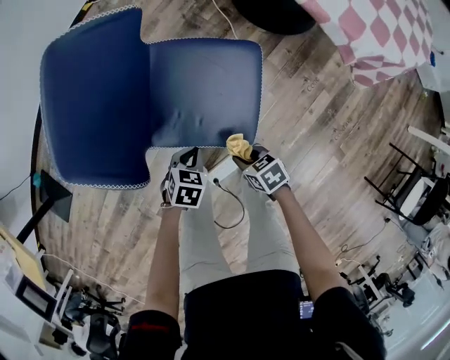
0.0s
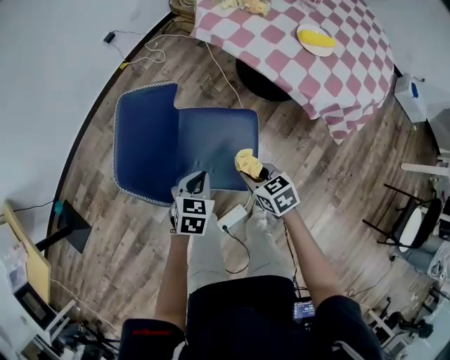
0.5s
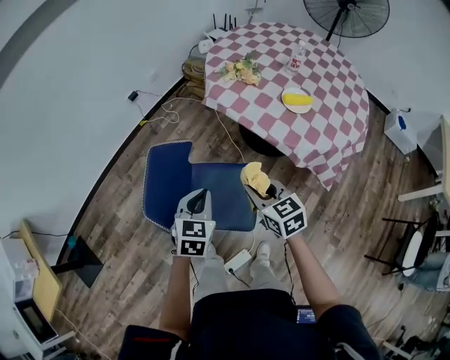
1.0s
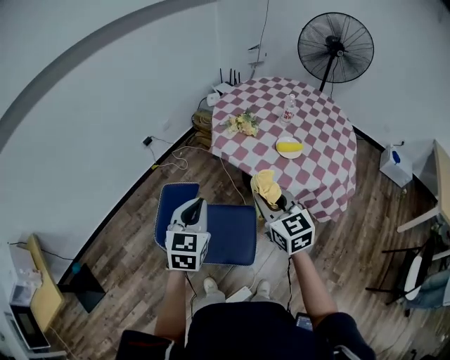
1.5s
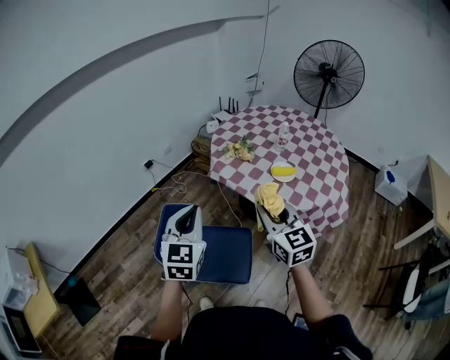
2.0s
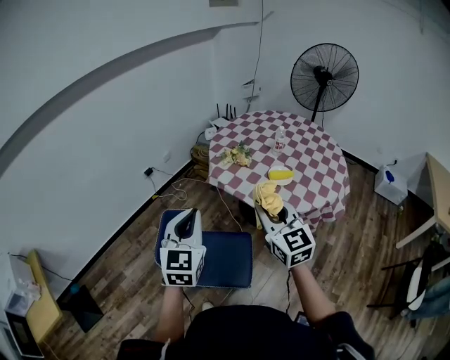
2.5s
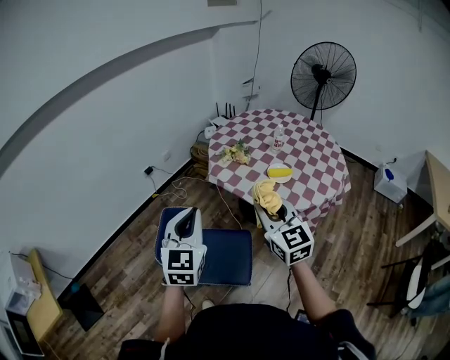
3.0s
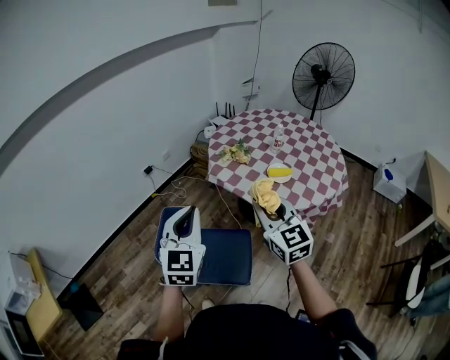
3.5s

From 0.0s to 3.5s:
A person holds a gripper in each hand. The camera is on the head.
From 0.0s to 2.0s: Both grippers travel together upward, approximately 70 cm. The left gripper tilts its fingers about 60 degrees upward, while the right gripper points its fingers some 50 degrees further upward.
From 2.0s to 3.5s: There are only small adjustments of the grippers.

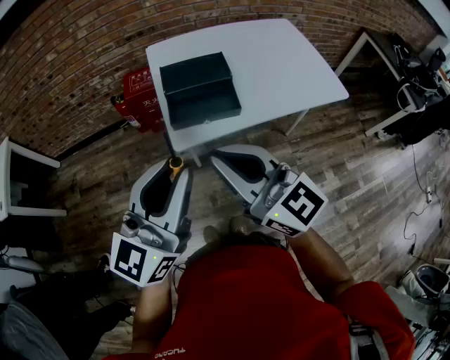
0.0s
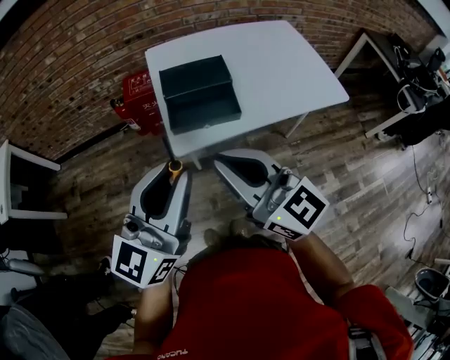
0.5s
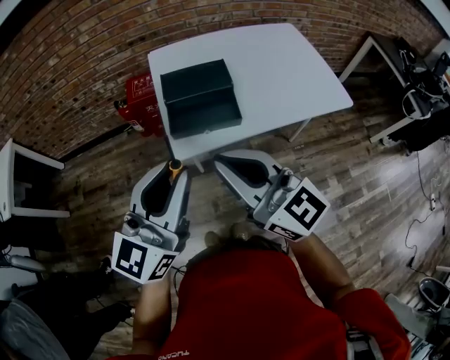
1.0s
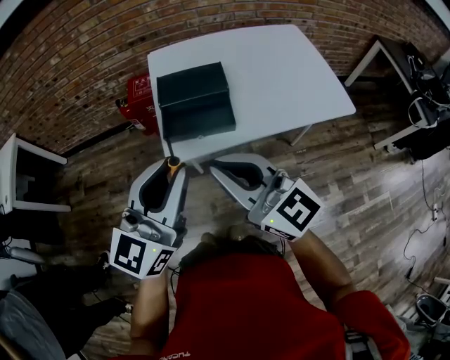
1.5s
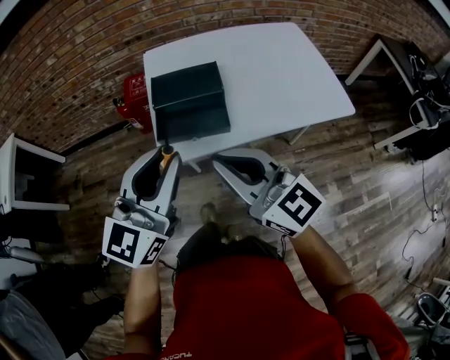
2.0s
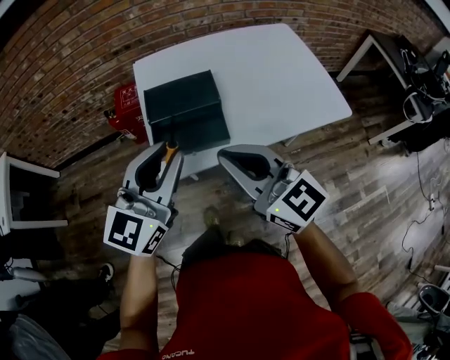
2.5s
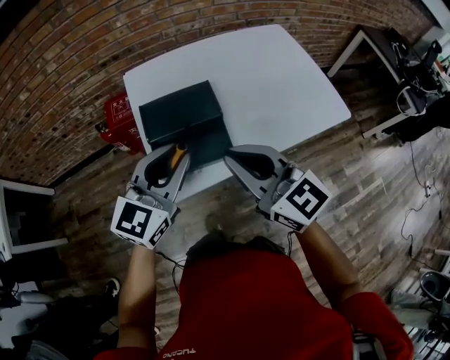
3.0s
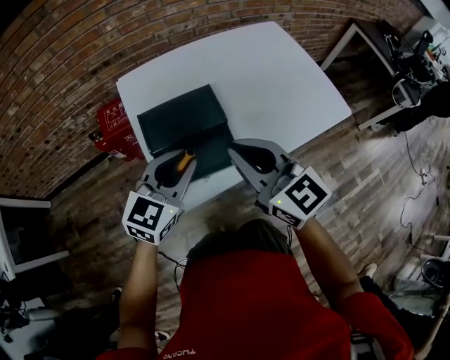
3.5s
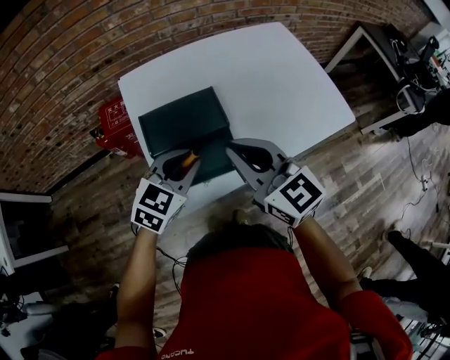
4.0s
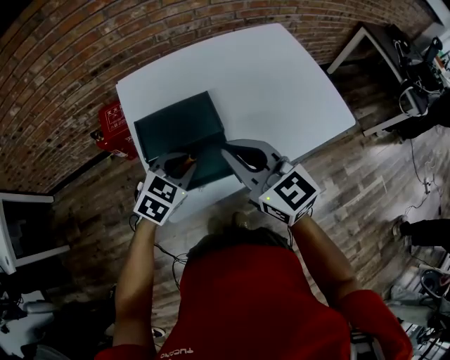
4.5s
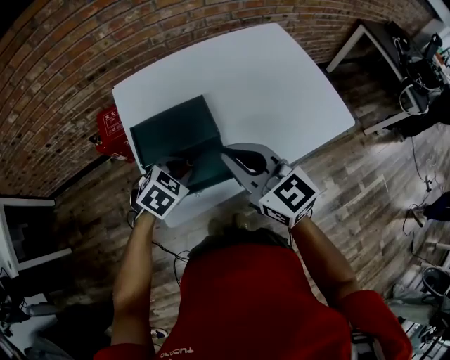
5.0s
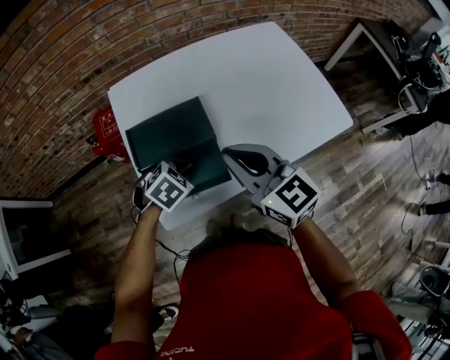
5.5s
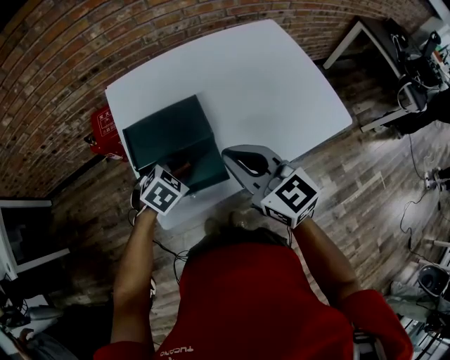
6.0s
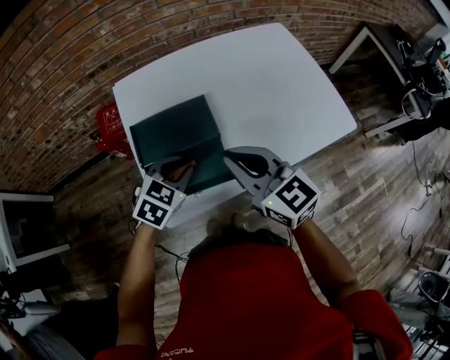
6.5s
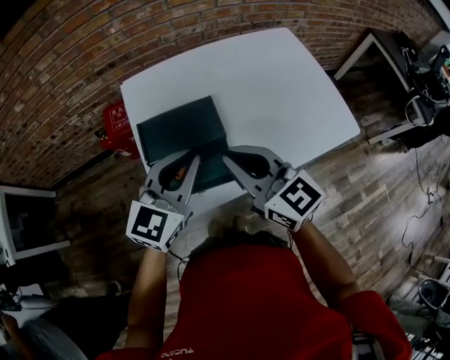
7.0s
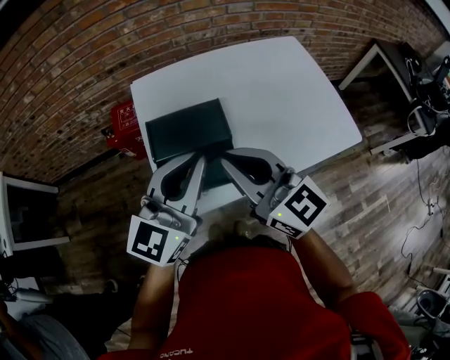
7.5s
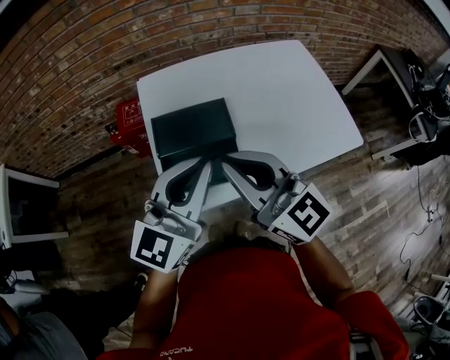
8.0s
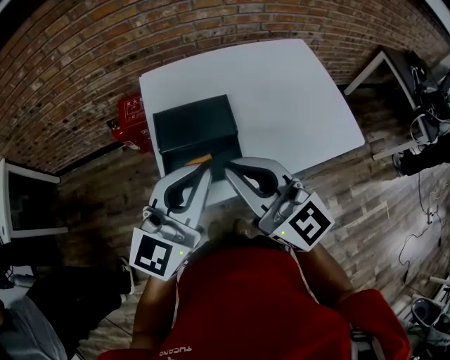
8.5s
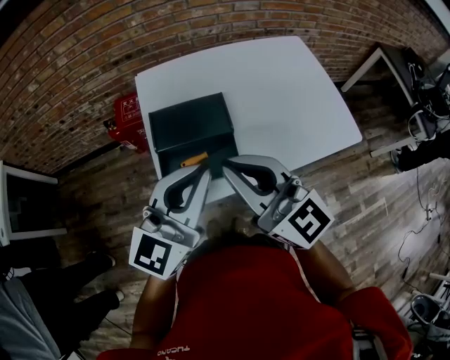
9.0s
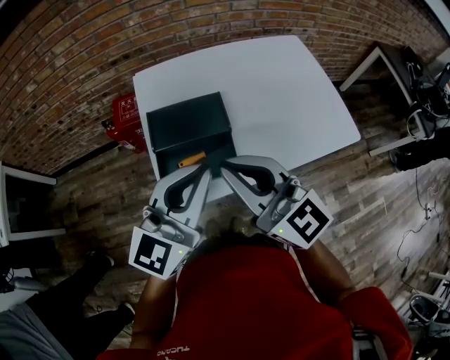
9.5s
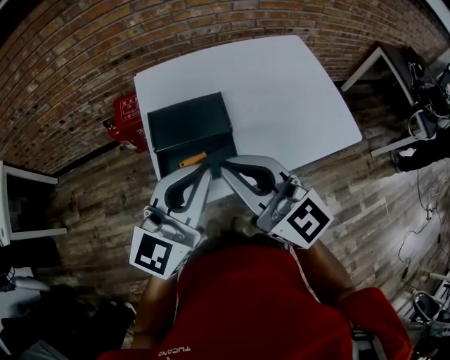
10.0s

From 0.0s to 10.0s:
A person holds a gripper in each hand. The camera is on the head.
From 0.0s to 2.0s: The left gripper goes approximately 10 cm forward and to the right, while the right gripper travels to the right and forward by roughly 10 cm.
From 2.0s to 4.0s: The right gripper heads forward, covering approximately 20 cm, and changes its angle by roughly 20 degrees; the left gripper moves forward and downward, approximately 25 cm, and tips its fingers downward by roughly 30 degrees.
From 4.0s to 6.0s: The right gripper changes place by roughly 5 cm; the left gripper shifts some 10 cm downward, and tips its fingers downward by roughly 30 degrees.
From 6.0s to 8.0s: The right gripper shifts approximately 10 cm upward and to the left. The left gripper travels upward by approximately 30 cm, and angles its fingers upward, by approximately 70 degrees.
From 8.0s to 10.0s: The grippers stay close to where they were, moving slightly.

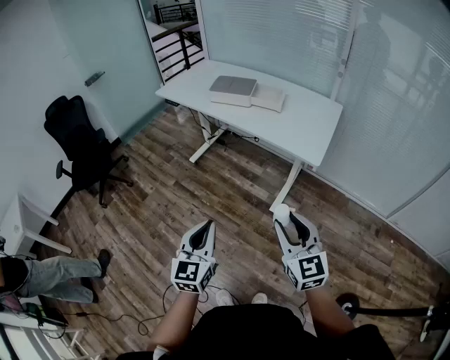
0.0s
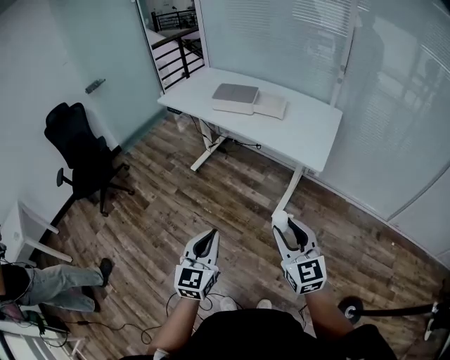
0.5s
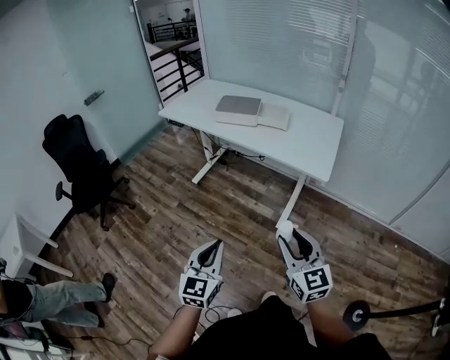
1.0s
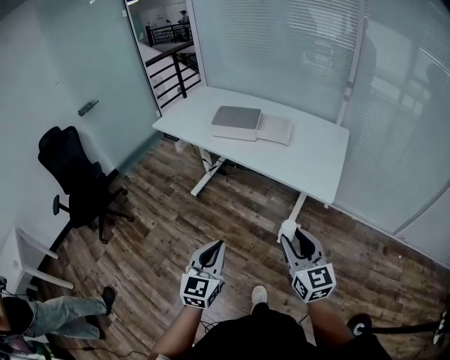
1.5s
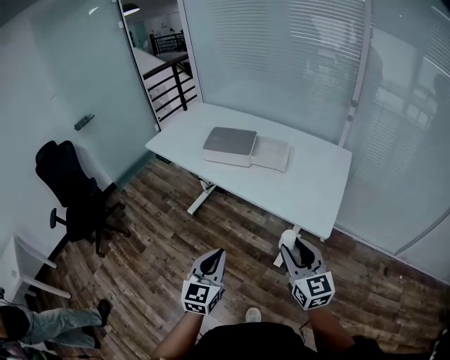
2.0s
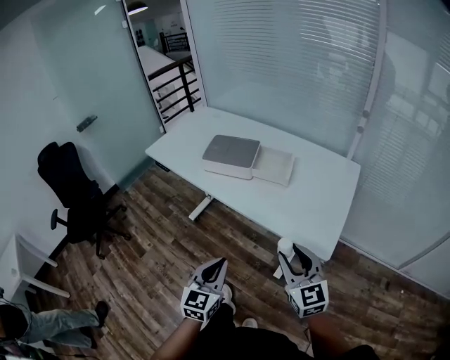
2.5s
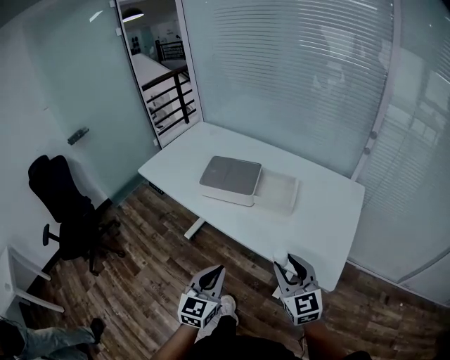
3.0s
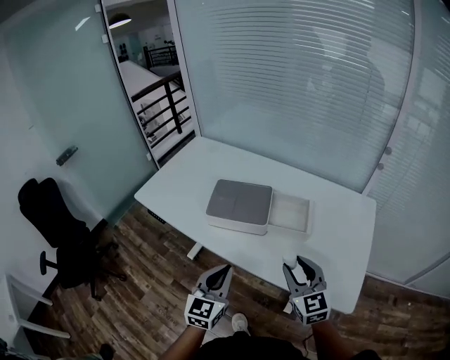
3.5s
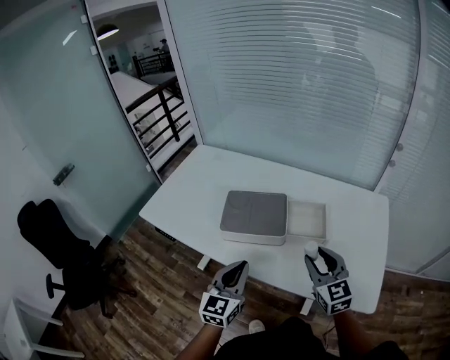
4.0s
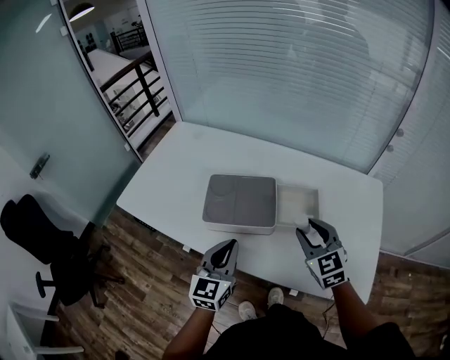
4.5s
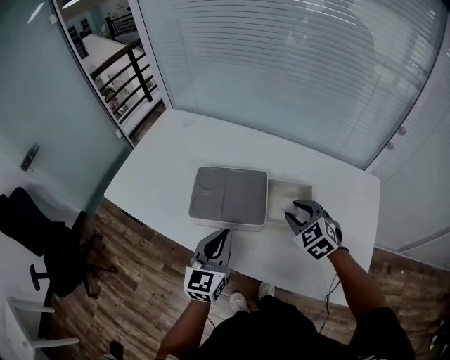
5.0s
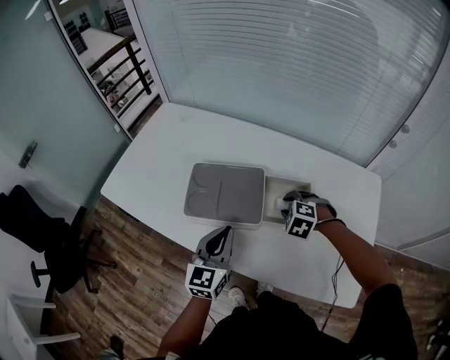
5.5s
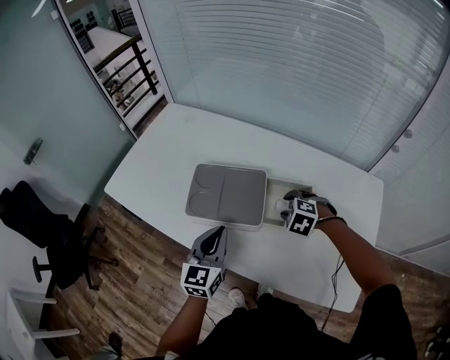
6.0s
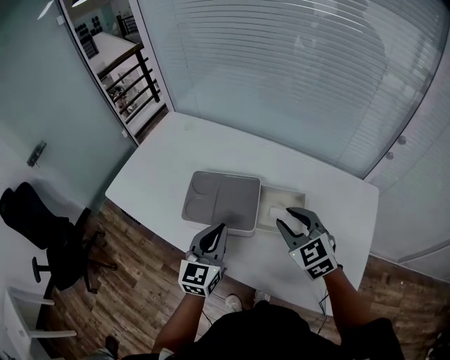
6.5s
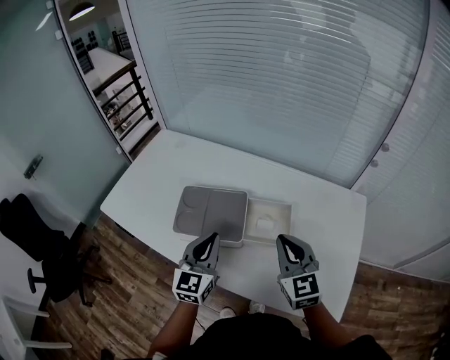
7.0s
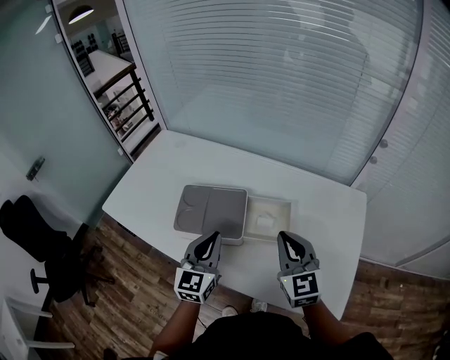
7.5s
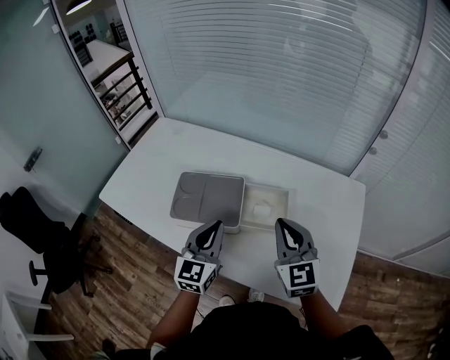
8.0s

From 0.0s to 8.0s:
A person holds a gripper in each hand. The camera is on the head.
From 0.0s to 2.0s: The grippers both shift forward by about 25 cm.
From 2.0s to 4.0s: Both grippers move forward, approximately 35 cm.
From 4.0s to 6.0s: The right gripper goes approximately 25 cm forward and downward, and points its fingers about 50 degrees further downward, while the left gripper travels forward by some 10 cm.
From 6.0s to 8.0s: The left gripper shifts some 10 cm to the right and upward, while the right gripper is displaced upward and backward by approximately 25 cm, tilts its fingers roughly 60 degrees upward, and closes its fingers.

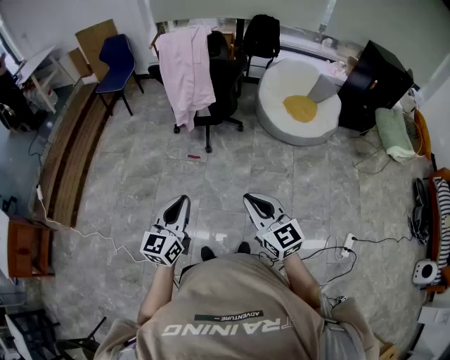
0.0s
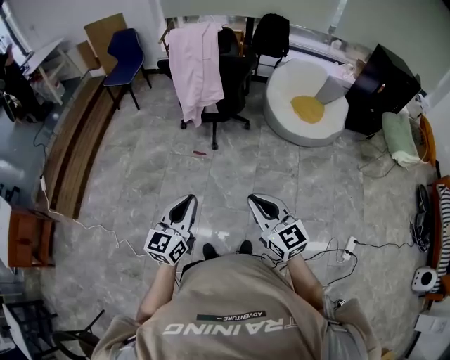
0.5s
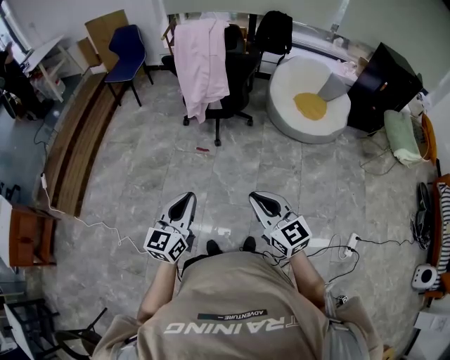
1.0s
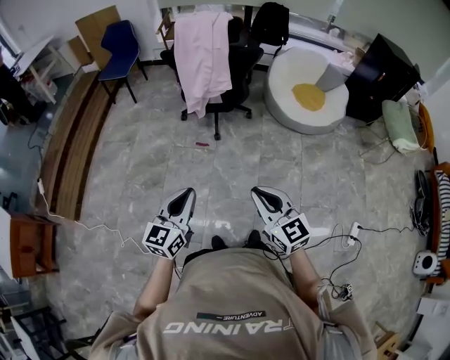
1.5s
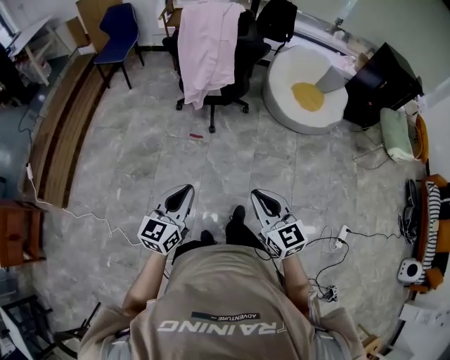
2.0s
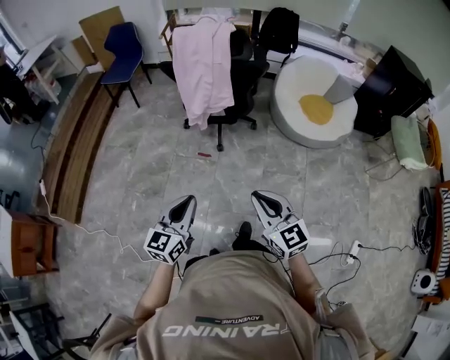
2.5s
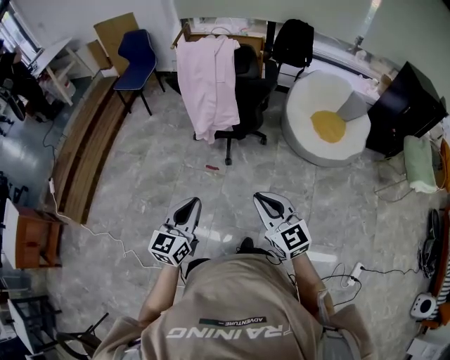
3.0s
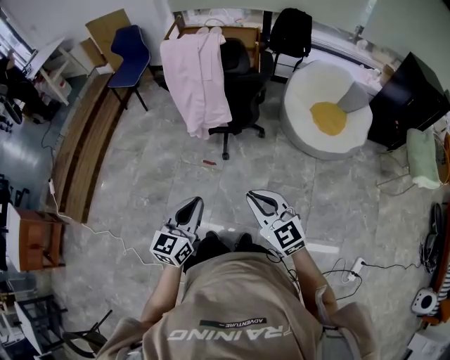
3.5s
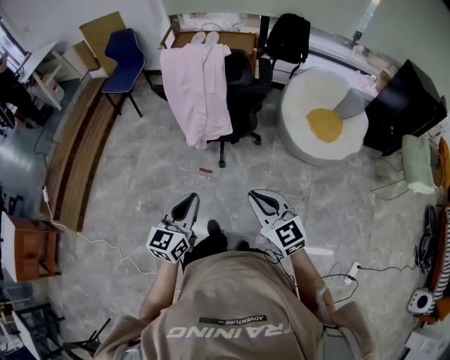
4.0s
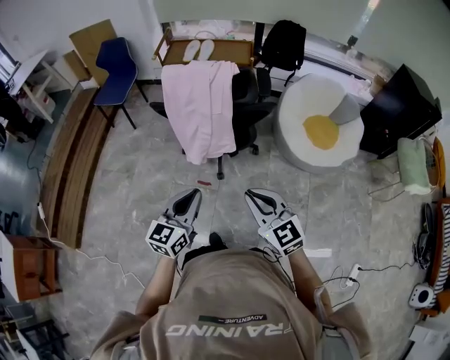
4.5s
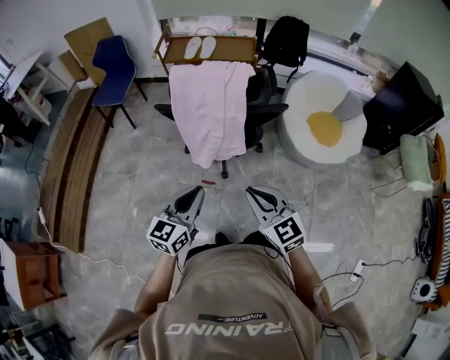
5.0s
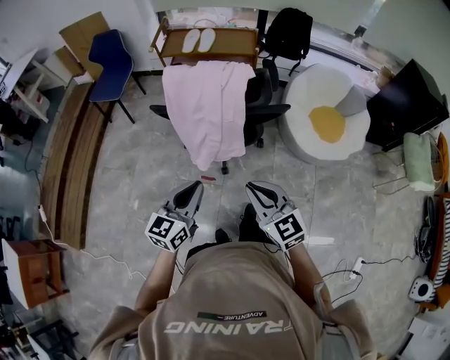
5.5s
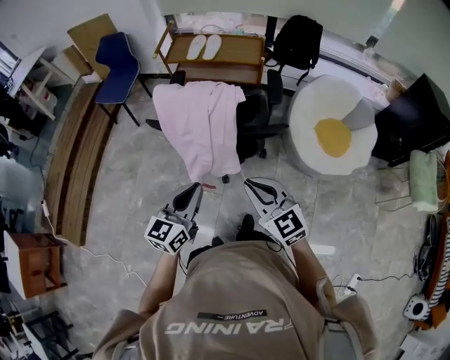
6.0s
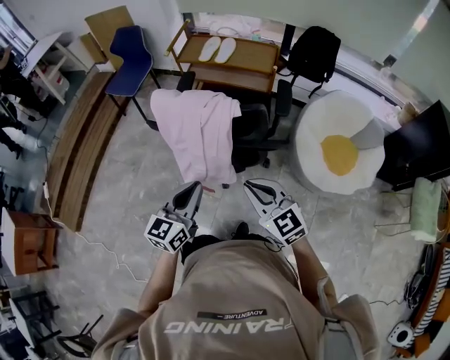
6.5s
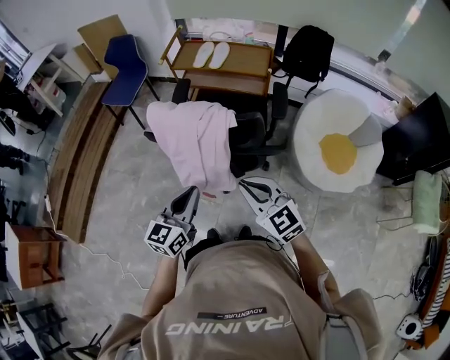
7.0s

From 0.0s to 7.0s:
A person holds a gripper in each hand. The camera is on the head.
From 0.0s to 2.0s: Both grippers move to the left, roughly 5 cm.
From 2.0s to 3.5s: The grippers both shift forward and to the right by approximately 20 cm.
From 3.5s to 5.0s: The right gripper goes some 20 cm forward and to the left; the left gripper goes approximately 20 cm forward.
From 5.0s to 7.0s: The grippers both shift forward and to the right by roughly 15 cm.
